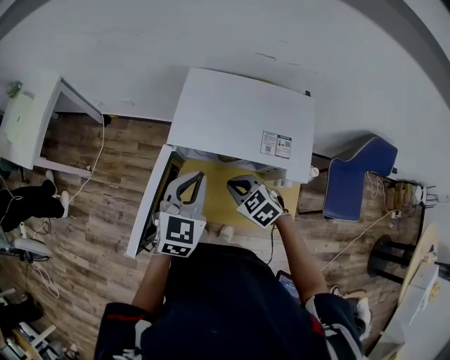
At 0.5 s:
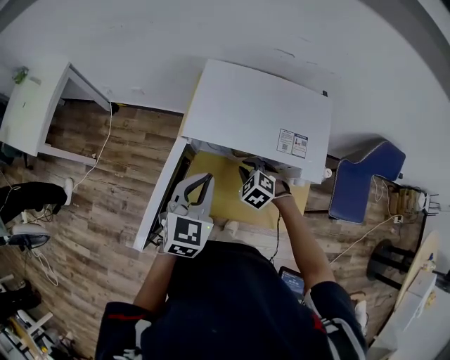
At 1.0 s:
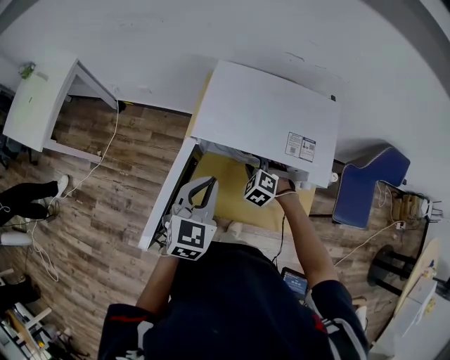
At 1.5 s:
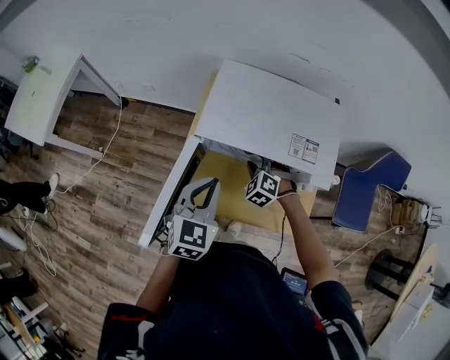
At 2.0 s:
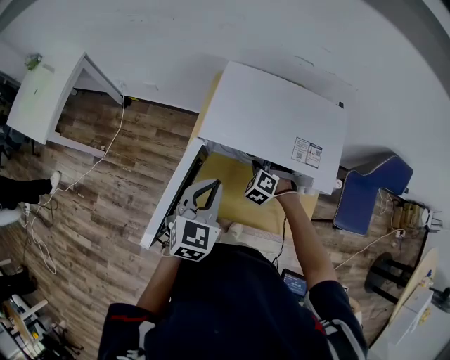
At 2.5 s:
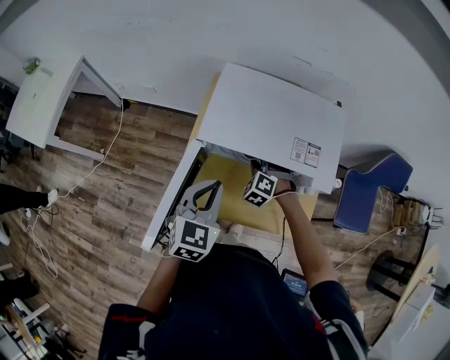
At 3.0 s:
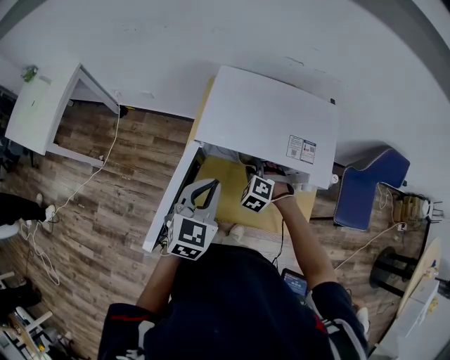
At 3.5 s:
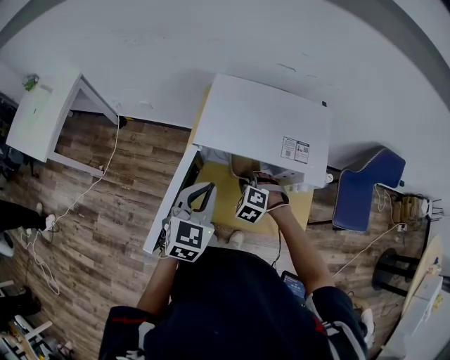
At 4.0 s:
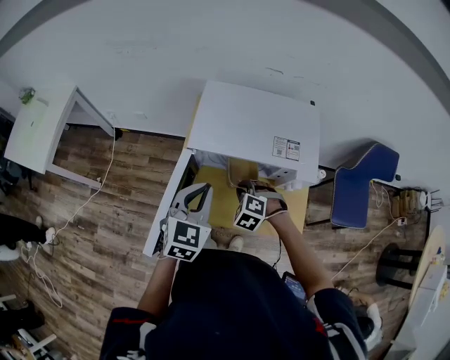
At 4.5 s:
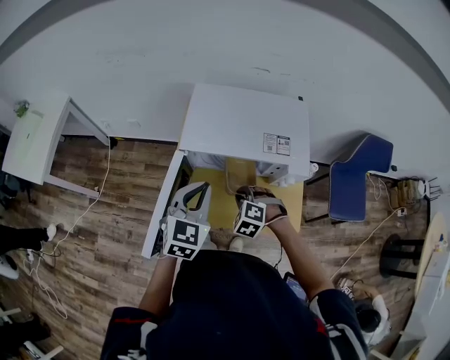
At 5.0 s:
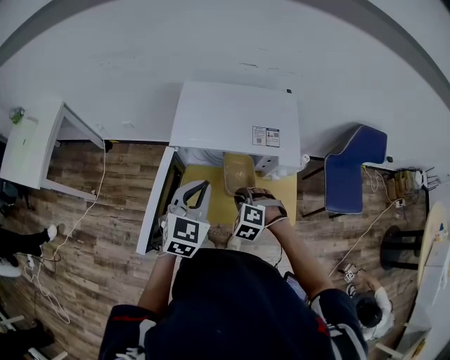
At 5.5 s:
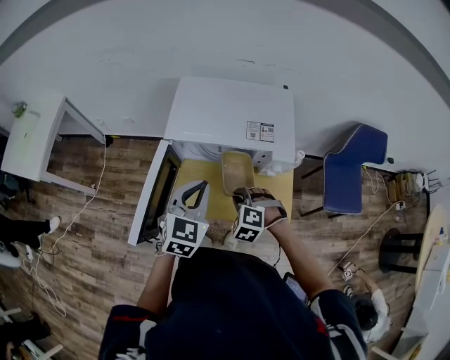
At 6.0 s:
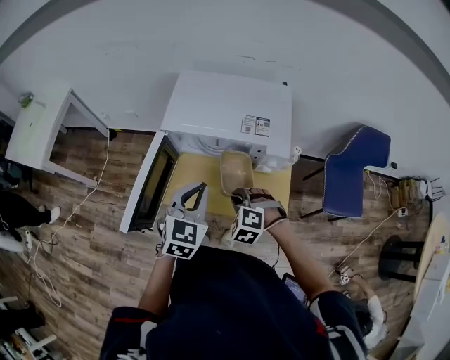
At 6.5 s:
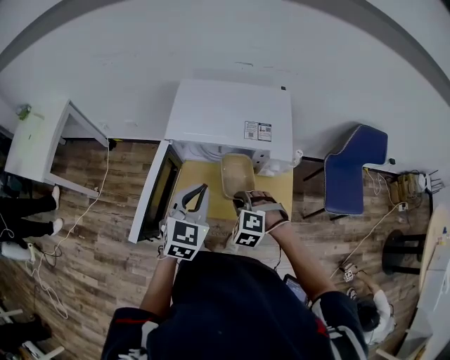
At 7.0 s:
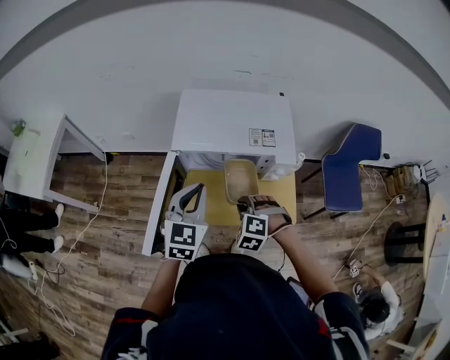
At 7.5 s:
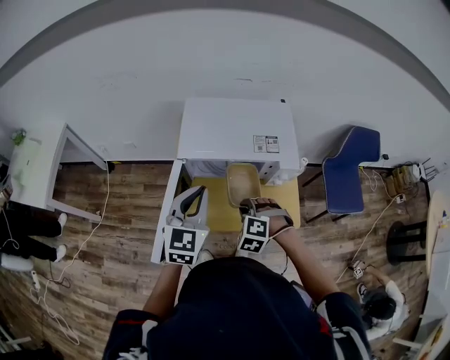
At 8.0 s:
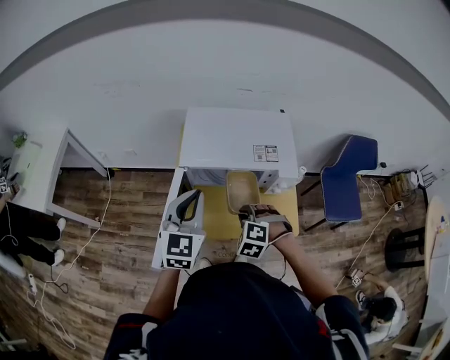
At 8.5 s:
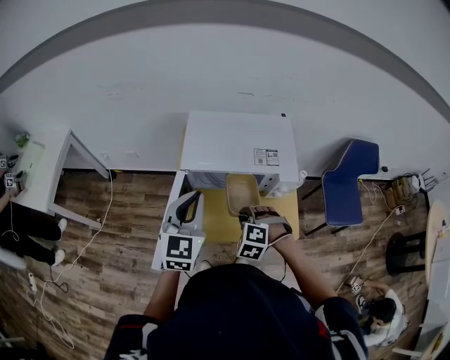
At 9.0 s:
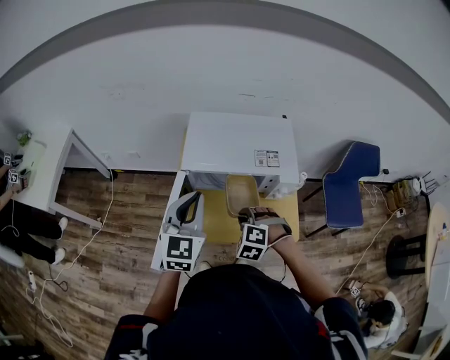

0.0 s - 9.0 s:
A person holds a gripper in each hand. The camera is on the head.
0.0 s - 2.0 s: The left gripper shifts by roughly 5 cm, while the right gripper heads forward and downward, covering some 15 cm, rotates approximately 40 degrees, and opens.
2.0 s - 4.5 s: The right gripper shifts about 15 cm backward and upward, and closes.
4.5 s - 7.0 s: The right gripper moves backward, about 5 cm.
7.0 s - 9.0 s: The left gripper goes roughly 5 cm upward.

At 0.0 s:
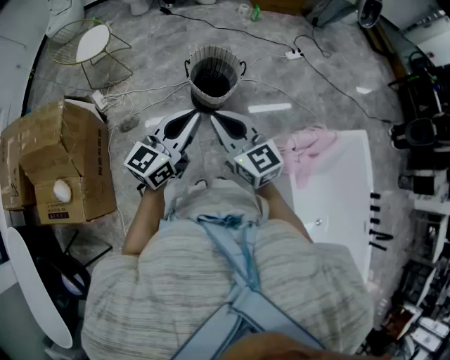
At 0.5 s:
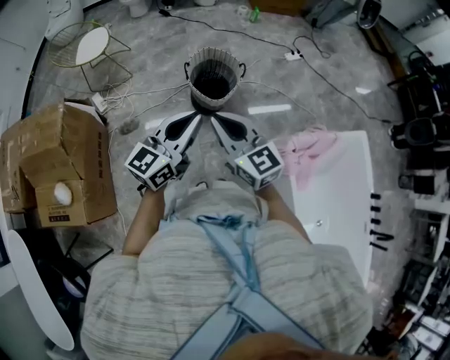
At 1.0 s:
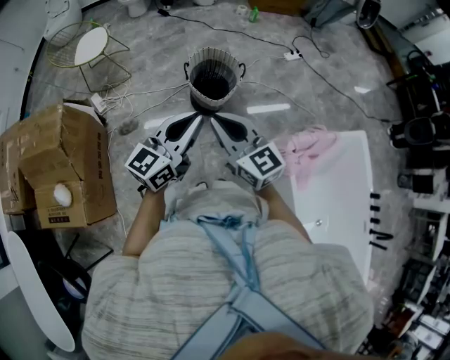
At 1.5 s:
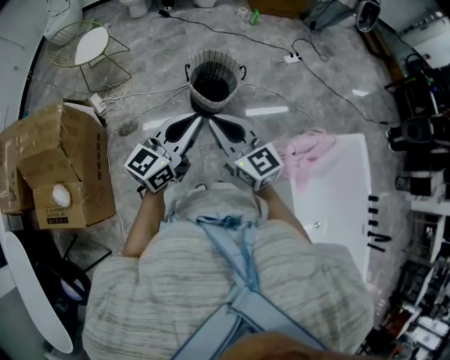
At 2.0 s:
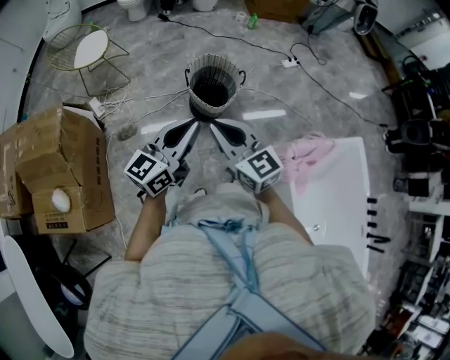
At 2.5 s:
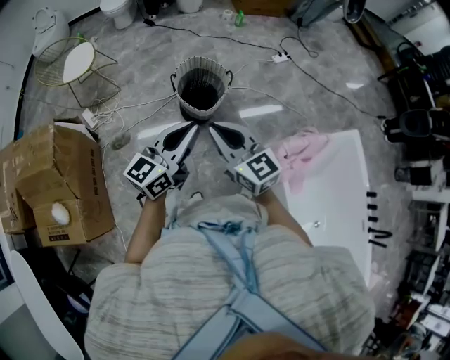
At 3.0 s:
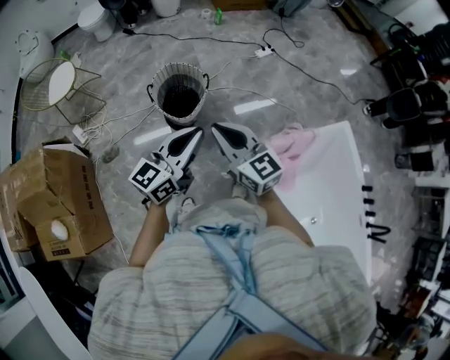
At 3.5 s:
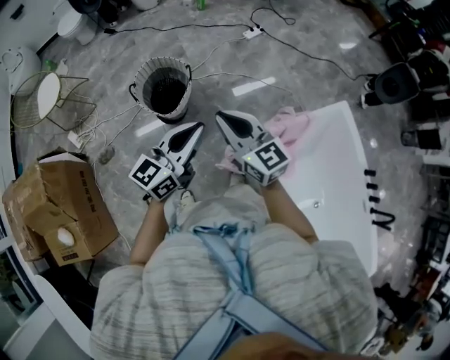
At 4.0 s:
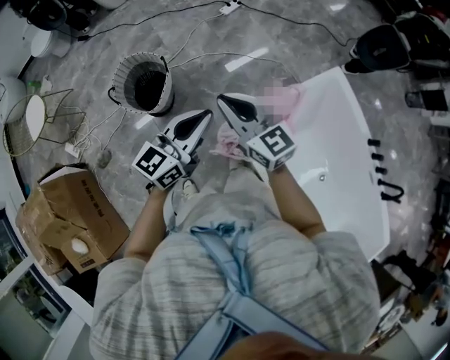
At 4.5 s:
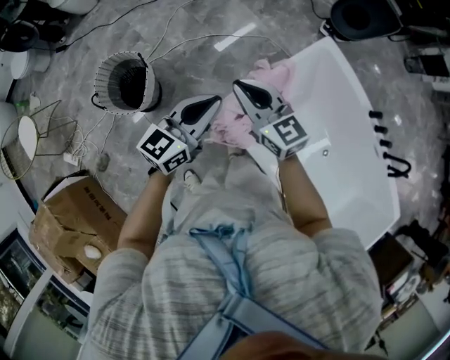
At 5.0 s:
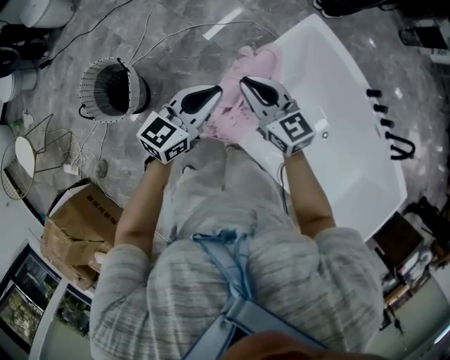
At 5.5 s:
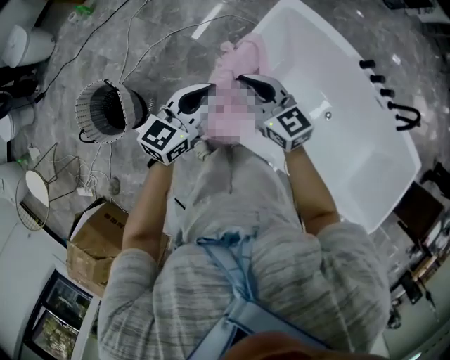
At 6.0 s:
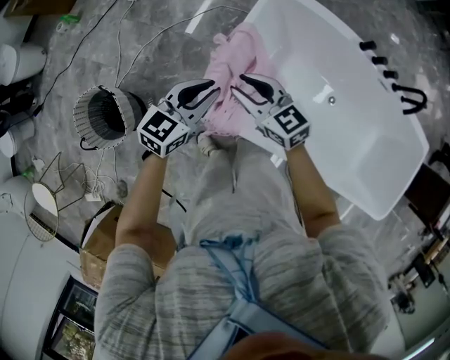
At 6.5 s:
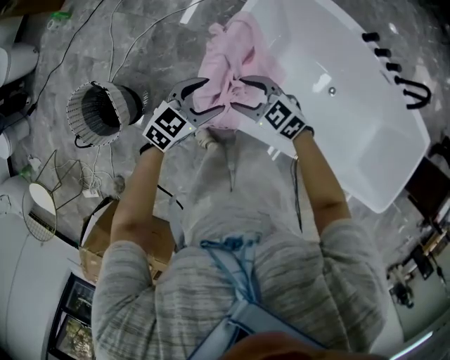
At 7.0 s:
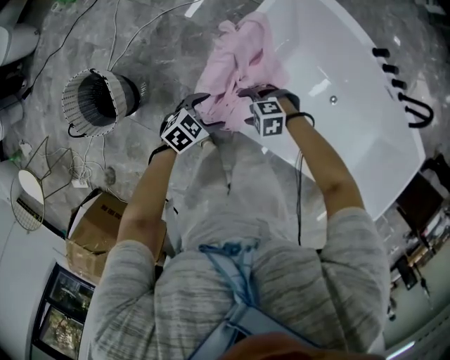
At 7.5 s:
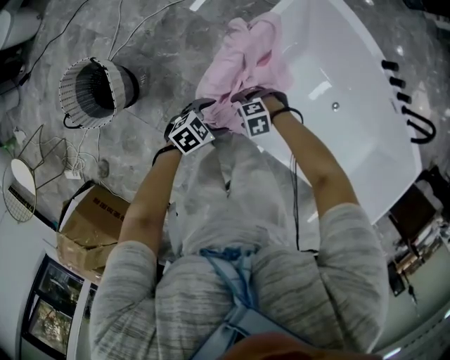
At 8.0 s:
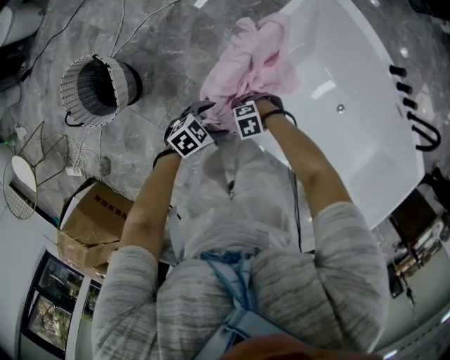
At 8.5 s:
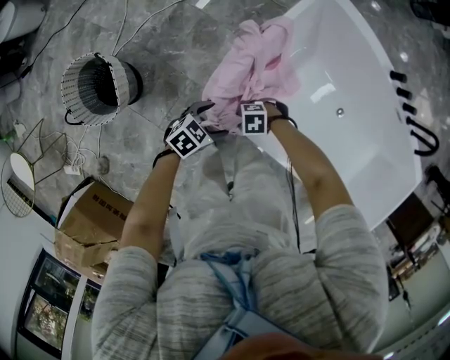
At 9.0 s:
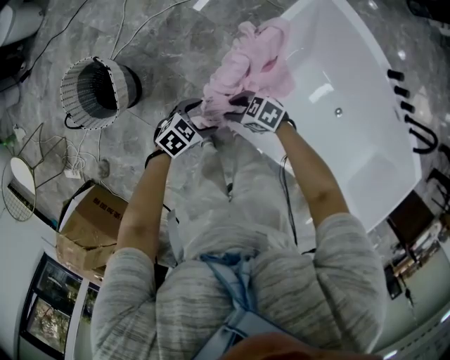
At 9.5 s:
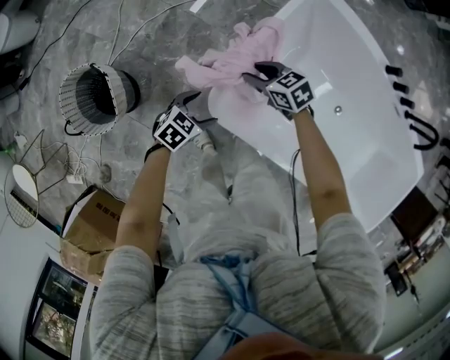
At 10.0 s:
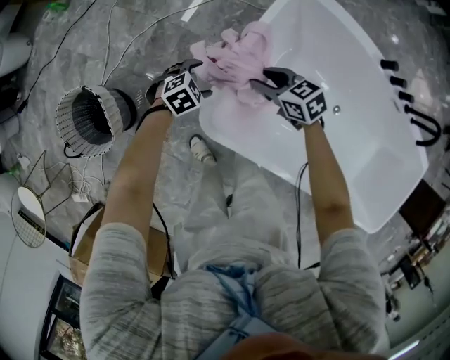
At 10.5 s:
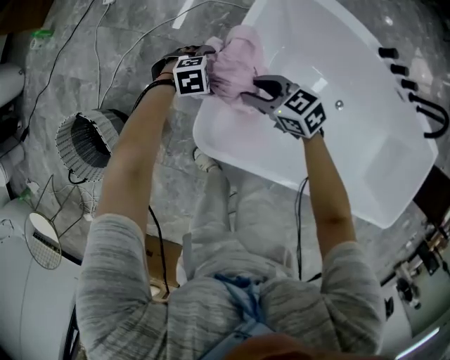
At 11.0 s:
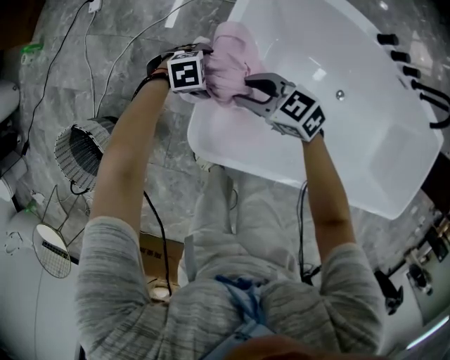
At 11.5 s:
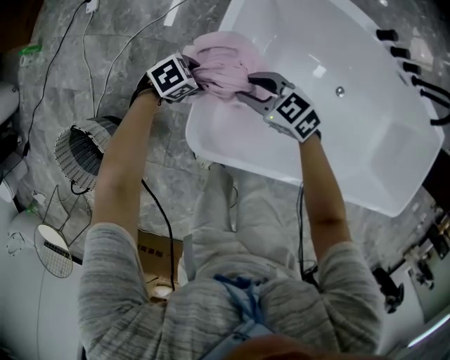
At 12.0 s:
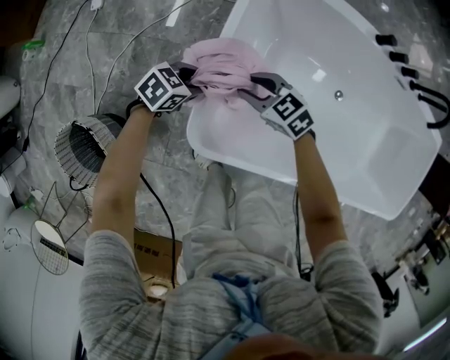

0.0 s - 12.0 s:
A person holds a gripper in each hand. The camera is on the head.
0.0 s - 2.0 s: The grippers make only small movements.
2.0 s - 4.0 s: The pair of grippers is taken to the right, some 40 cm. The right gripper rotates some 20 degrees. Meanwhile the left gripper rotates approximately 30 degrees.
4.0 s - 6.0 s: The left gripper moves roughly 30 cm, and rotates some 50 degrees, while the right gripper shifts by some 30 cm, and rotates some 30 degrees.
6.0 s - 8.0 s: The two grippers go roughly 30 cm downward. The left gripper changes its angle by approximately 30 degrees, and opens up. Meanwhile the right gripper points its fingers roughly 40 degrees further downward, and opens up.
8.0 s - 10.0 s: The right gripper shifts by roughly 30 cm, swivels roughly 80 degrees, and closes up, while the left gripper changes place by roughly 20 cm, and swivels roughly 30 degrees.
10.0 s - 12.0 s: The left gripper changes place by roughly 10 cm, rotates approximately 20 degrees, and closes.

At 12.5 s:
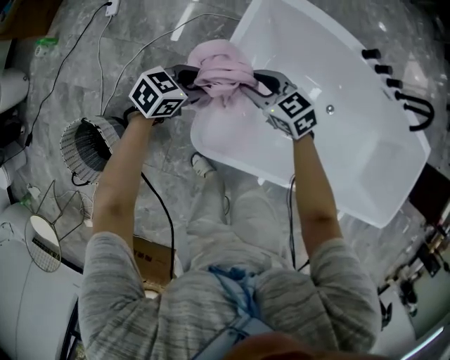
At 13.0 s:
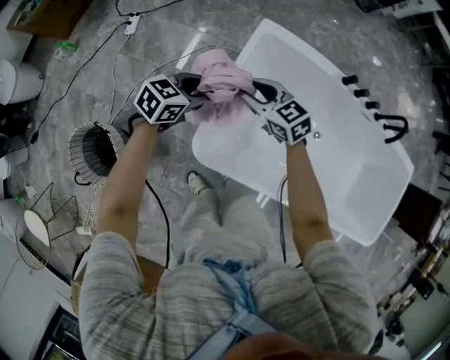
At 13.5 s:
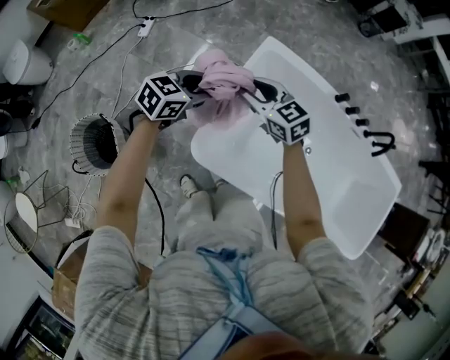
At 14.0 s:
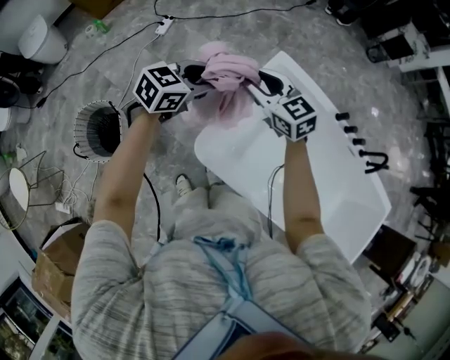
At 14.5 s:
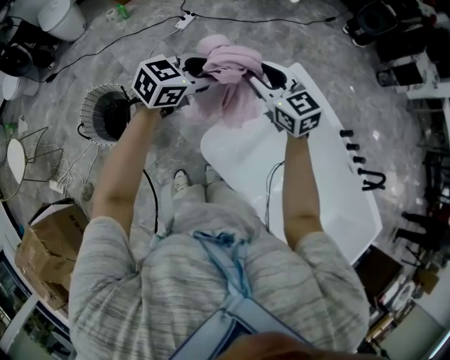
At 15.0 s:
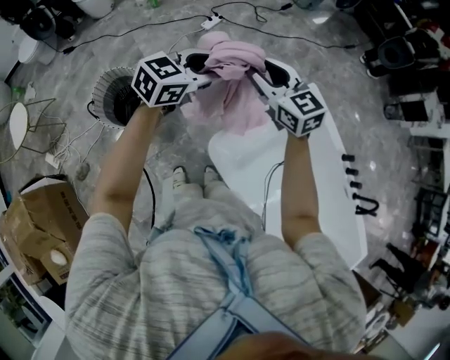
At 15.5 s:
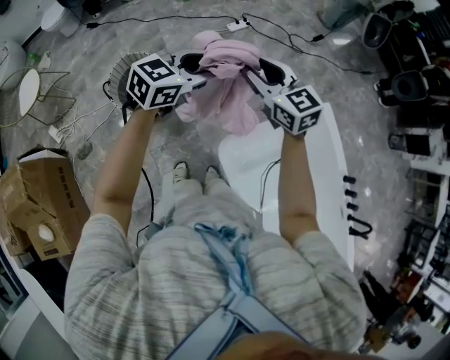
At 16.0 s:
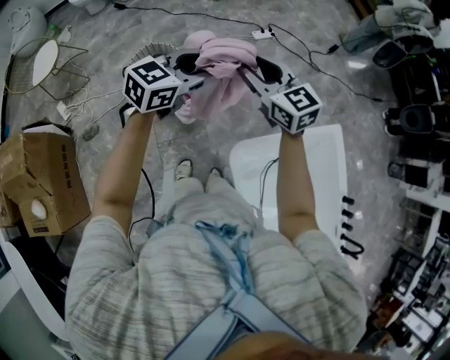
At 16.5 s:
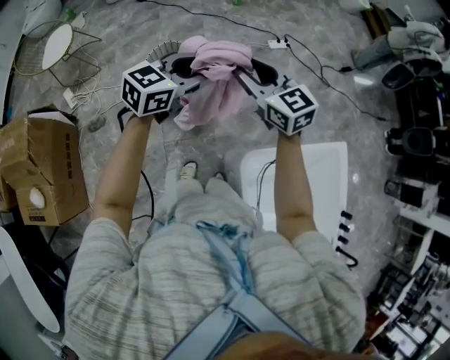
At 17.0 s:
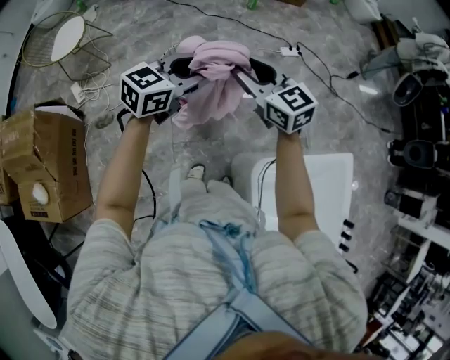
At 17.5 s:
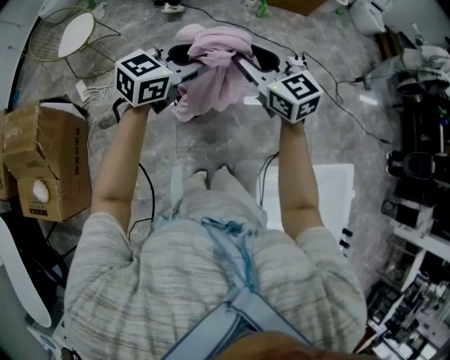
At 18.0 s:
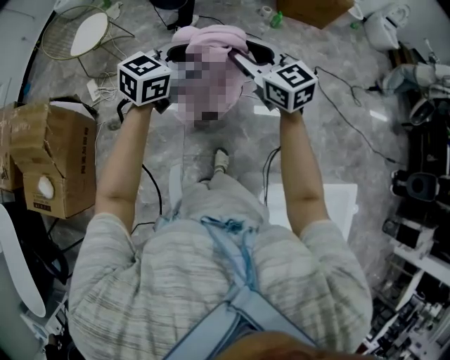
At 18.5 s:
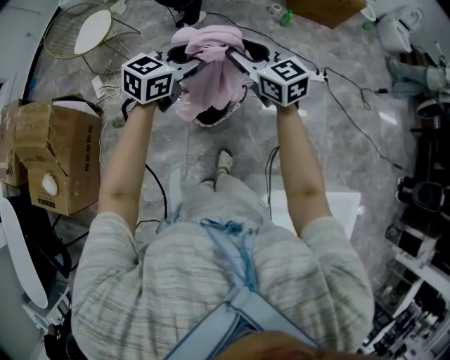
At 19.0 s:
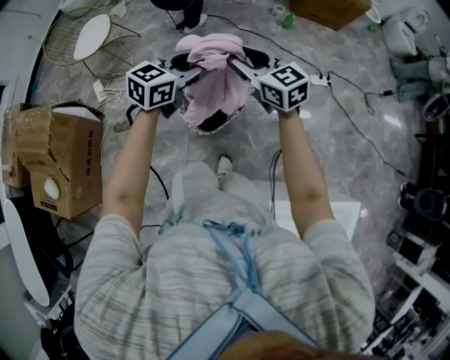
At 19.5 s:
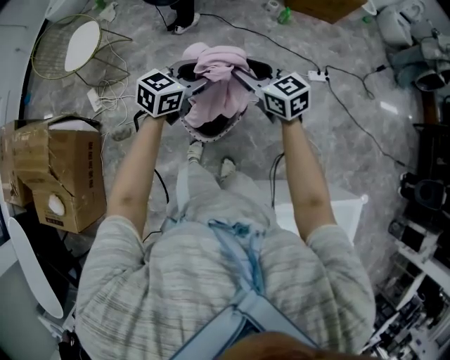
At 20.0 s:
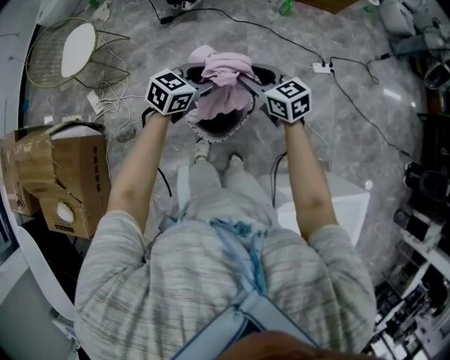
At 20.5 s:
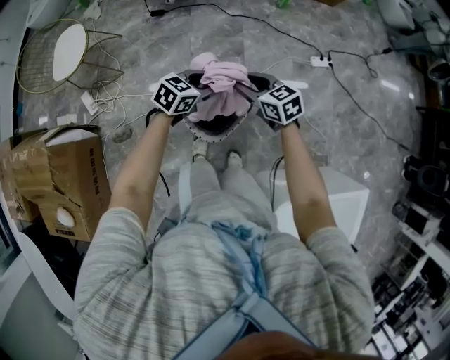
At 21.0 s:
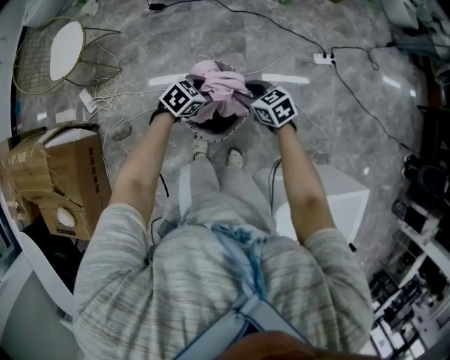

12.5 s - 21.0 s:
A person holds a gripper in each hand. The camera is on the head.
12.5 s - 14.5 s: Both grippers move upward, approximately 30 cm. The right gripper swivels about 30 degrees; the left gripper changes its angle by approximately 40 degrees.
14.5 s - 16.5 s: The pair of grippers is taken some 40 cm. The left gripper rotates approximately 40 degrees; the right gripper changes its angle by some 40 degrees.
16.5 s - 19.0 s: Both grippers travel together forward and to the left, some 30 cm.
19.0 s - 21.0 s: The two grippers go about 25 cm downward. The right gripper rotates some 30 degrees, while the left gripper angles its fingers downward, by some 30 degrees.
